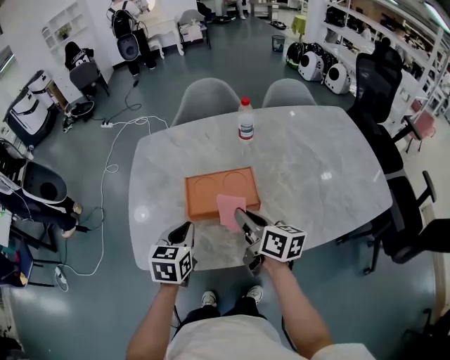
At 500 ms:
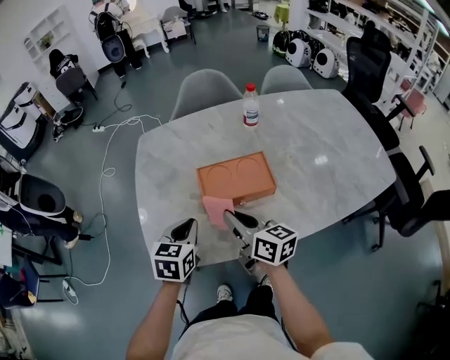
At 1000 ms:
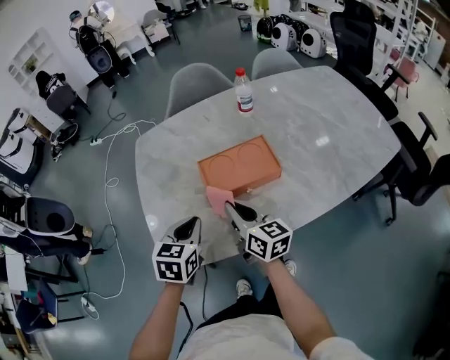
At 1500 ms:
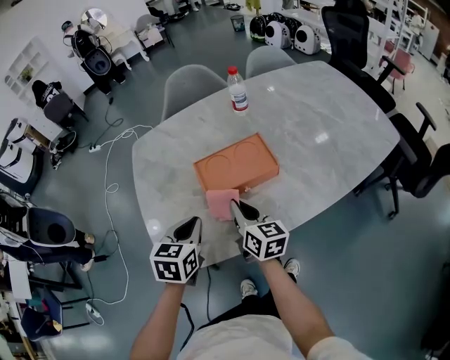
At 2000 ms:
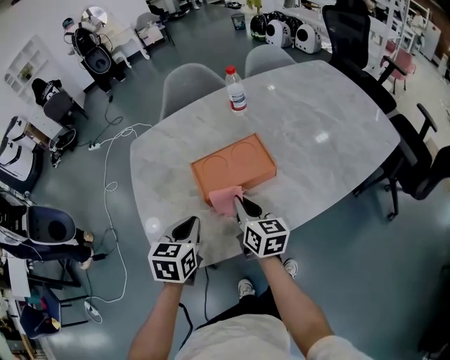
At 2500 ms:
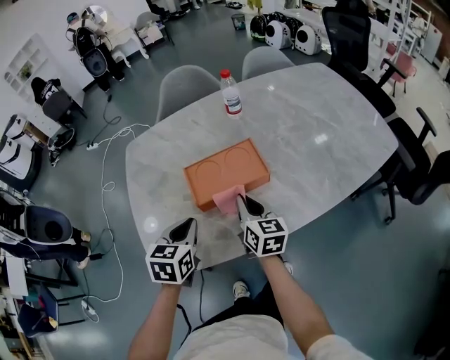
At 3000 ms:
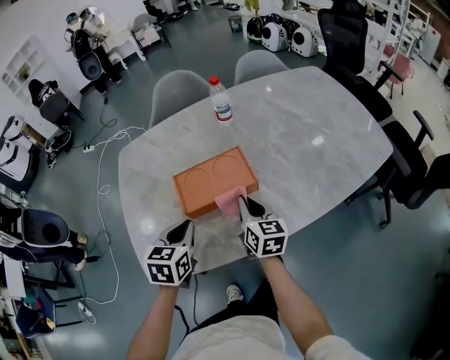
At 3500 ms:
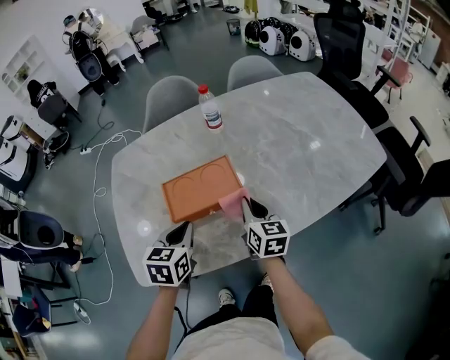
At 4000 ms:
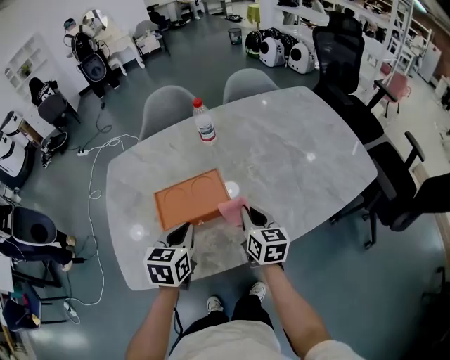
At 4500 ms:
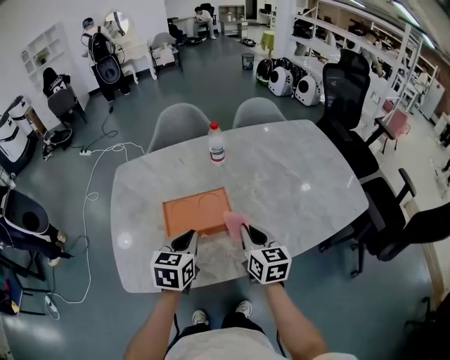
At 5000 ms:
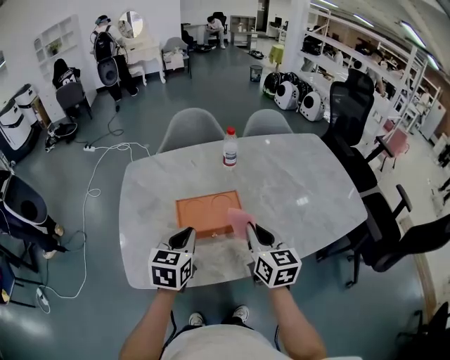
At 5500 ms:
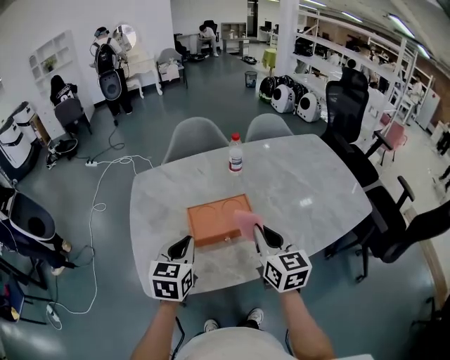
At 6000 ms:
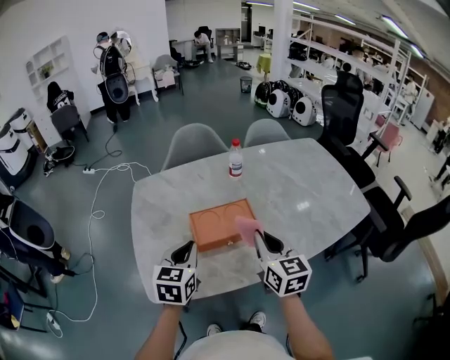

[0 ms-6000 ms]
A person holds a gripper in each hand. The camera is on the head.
0 ms to 2000 ms: The right gripper heads downward and to the left, covering approximately 10 cm, and turns by roughly 30 degrees. The left gripper ends up approximately 5 cm from where it was.
2000 ms to 4000 ms: Both grippers travel together to the right, roughly 15 cm.
4000 ms to 6000 ms: The right gripper heads upward, to the left and backward, covering approximately 20 cm. Meanwhile the left gripper heads to the left and upward, covering about 15 cm.

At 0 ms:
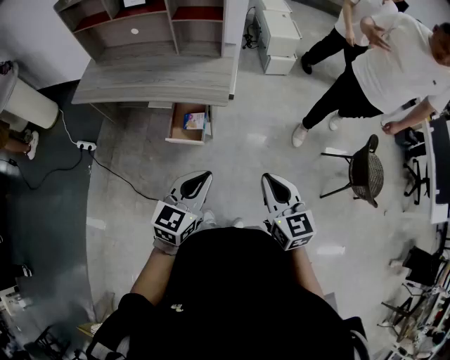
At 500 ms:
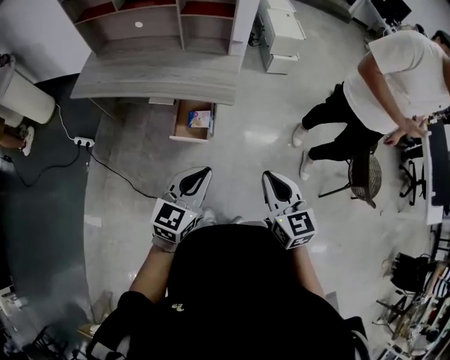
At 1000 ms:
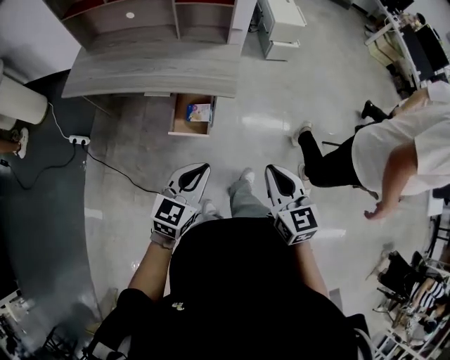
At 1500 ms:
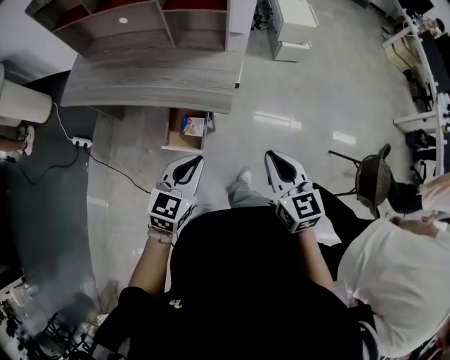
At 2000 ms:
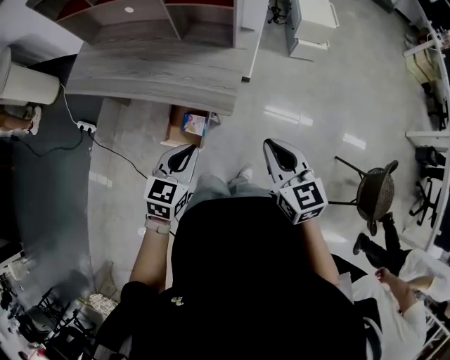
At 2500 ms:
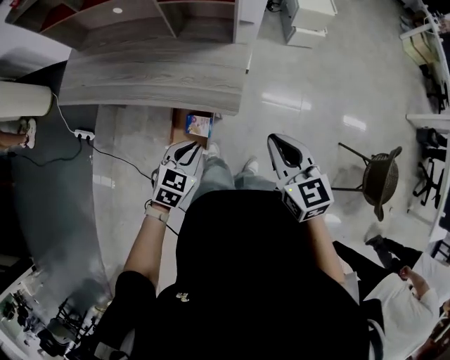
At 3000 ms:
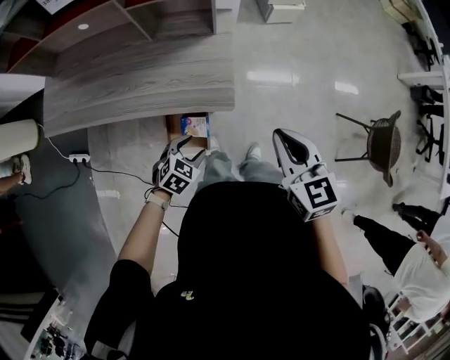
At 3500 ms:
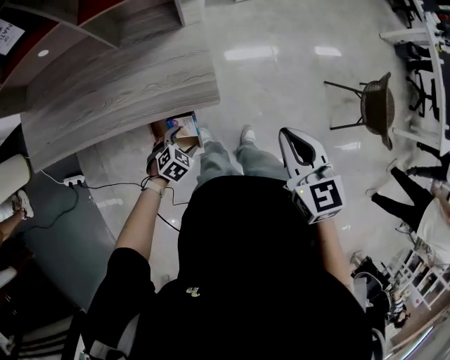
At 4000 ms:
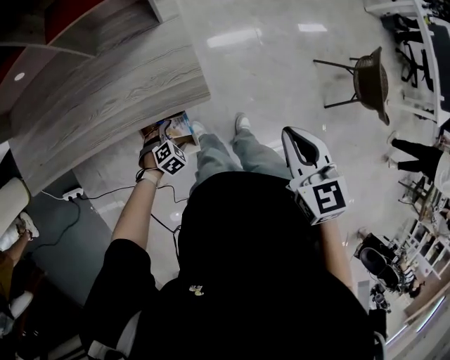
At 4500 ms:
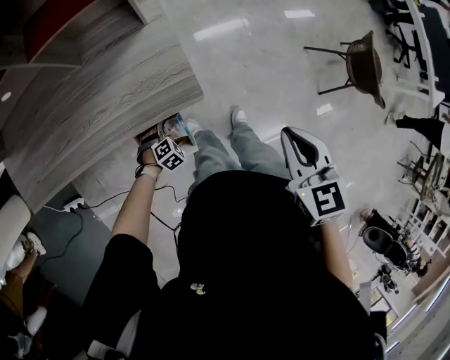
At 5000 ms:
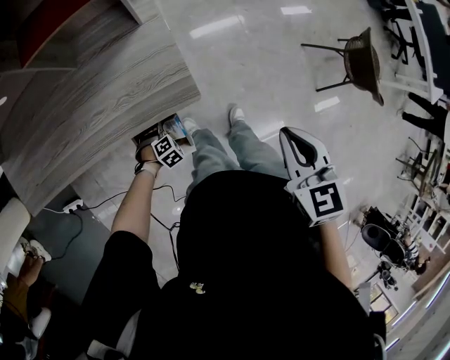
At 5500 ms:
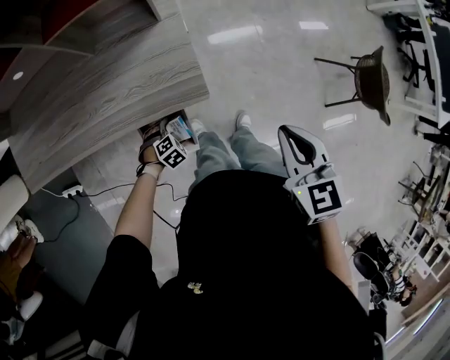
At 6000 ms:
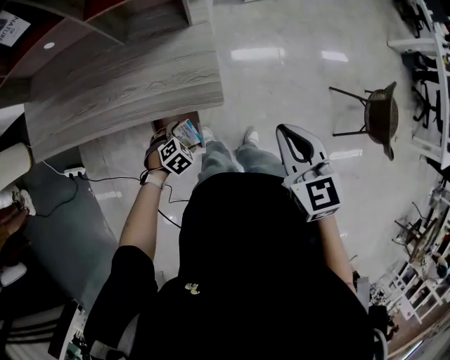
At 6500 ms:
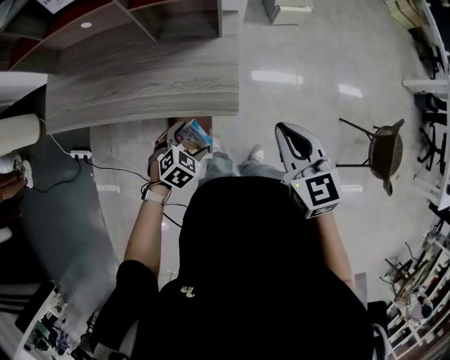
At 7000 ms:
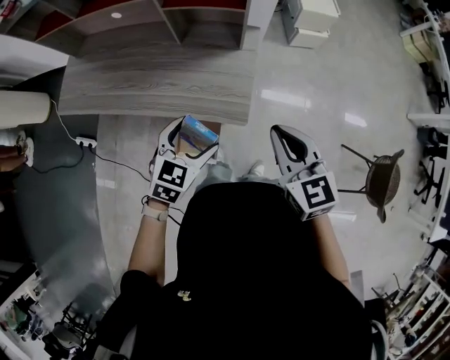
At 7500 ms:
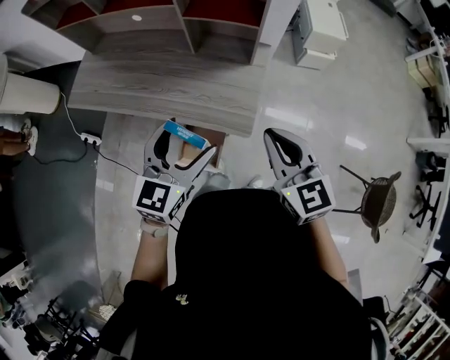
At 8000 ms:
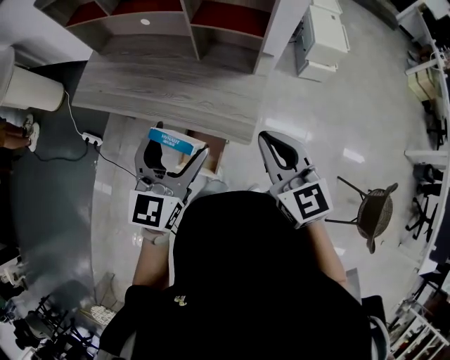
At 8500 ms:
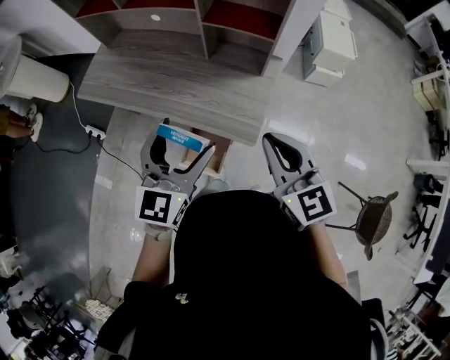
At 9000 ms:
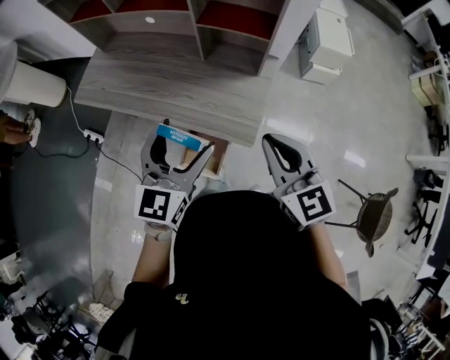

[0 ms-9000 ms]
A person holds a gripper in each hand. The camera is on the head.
0 ms to 2000 ms: The grippers both shift forward by about 25 cm.
2000 ms to 4500 ms: The left gripper travels downward by approximately 40 cm, angles its fingers downward, by roughly 40 degrees, and opens up. The right gripper moves downward, about 5 cm, and swivels some 40 degrees.
4500 ms to 7000 ms: The right gripper moves roughly 15 cm, and turns by about 40 degrees. Meanwhile the left gripper travels upward by some 40 cm, and angles its fingers upward, by some 30 degrees.
7000 ms to 9000 ms: The left gripper moves upward, some 15 cm, and swivels approximately 40 degrees. Meanwhile the right gripper goes some 10 cm upward and to the left.

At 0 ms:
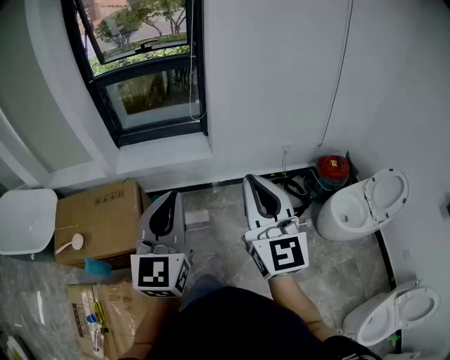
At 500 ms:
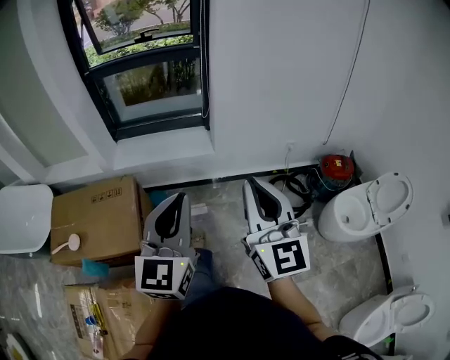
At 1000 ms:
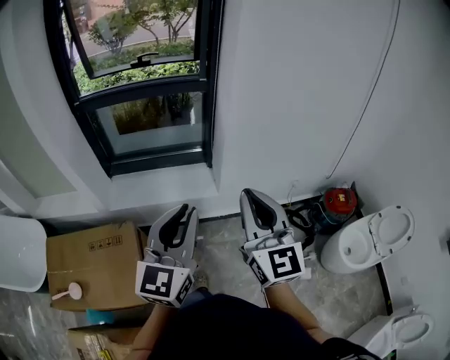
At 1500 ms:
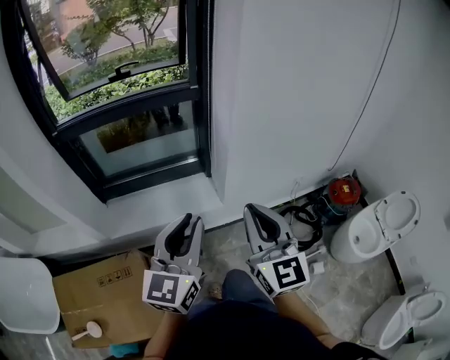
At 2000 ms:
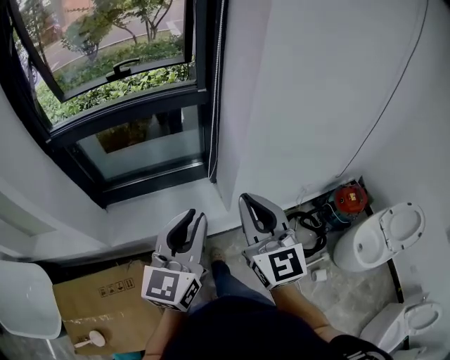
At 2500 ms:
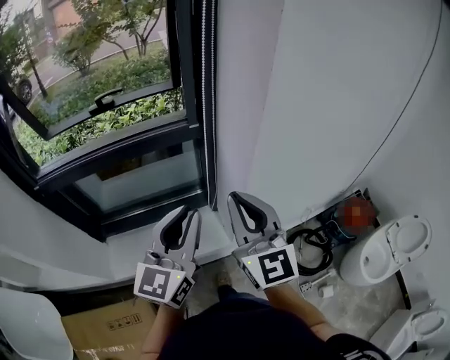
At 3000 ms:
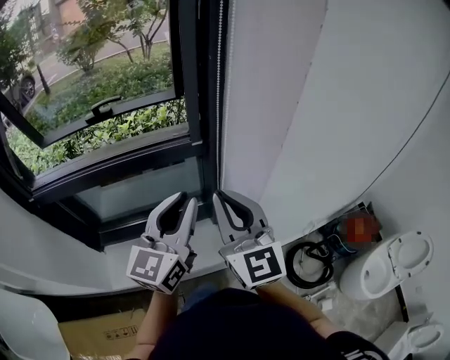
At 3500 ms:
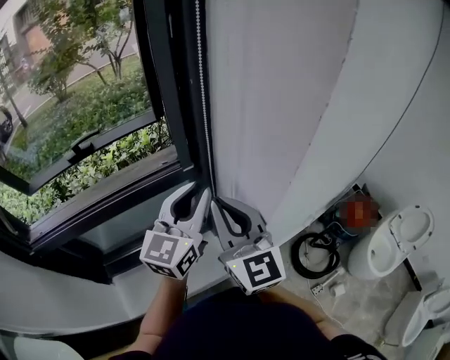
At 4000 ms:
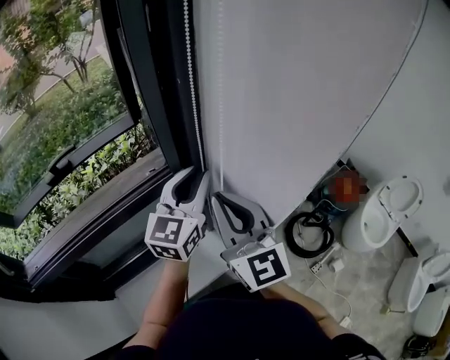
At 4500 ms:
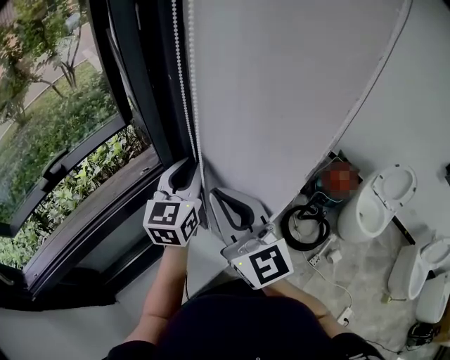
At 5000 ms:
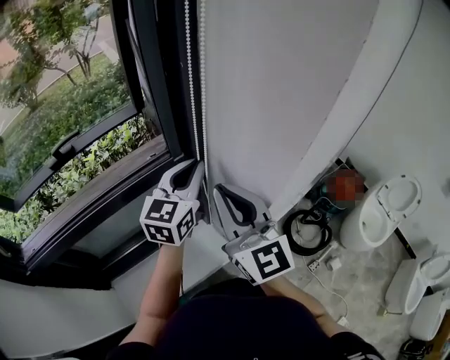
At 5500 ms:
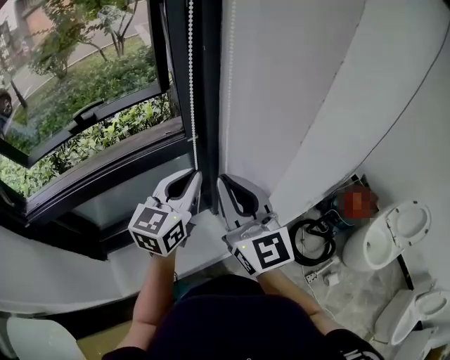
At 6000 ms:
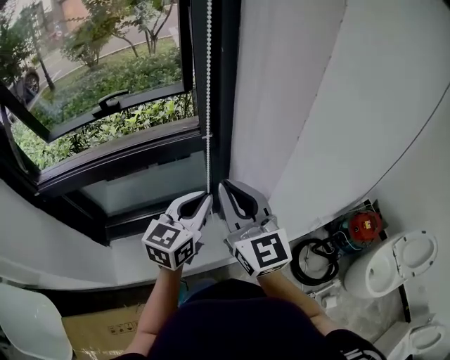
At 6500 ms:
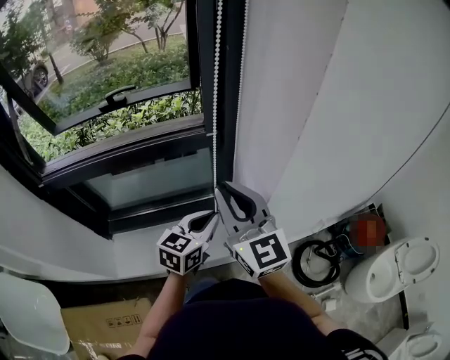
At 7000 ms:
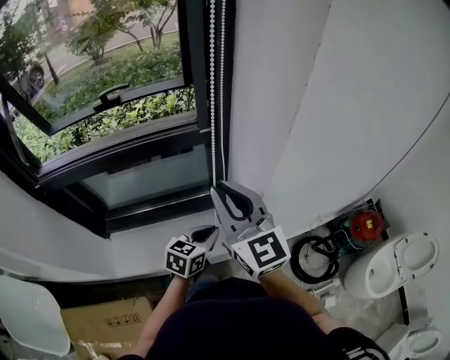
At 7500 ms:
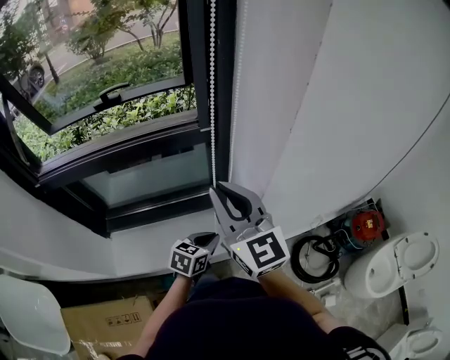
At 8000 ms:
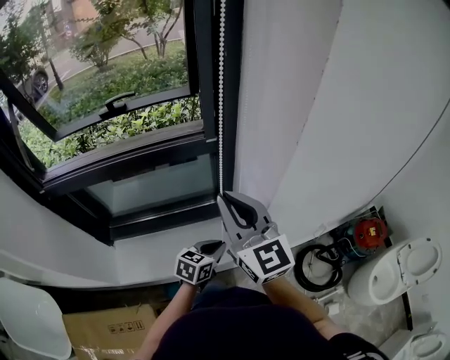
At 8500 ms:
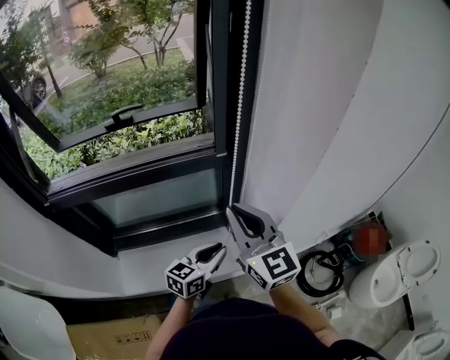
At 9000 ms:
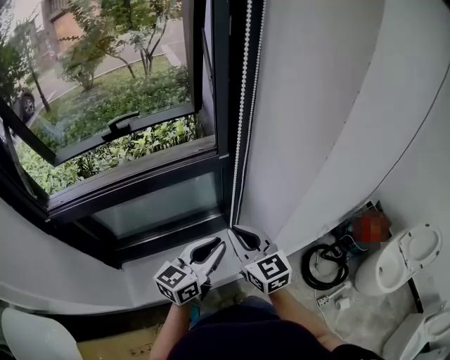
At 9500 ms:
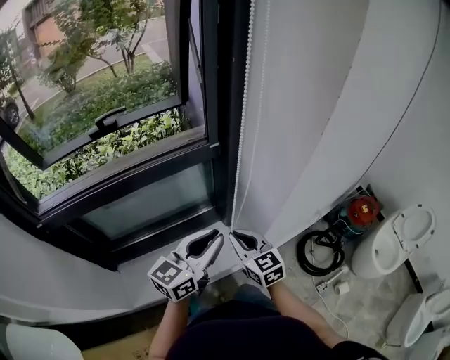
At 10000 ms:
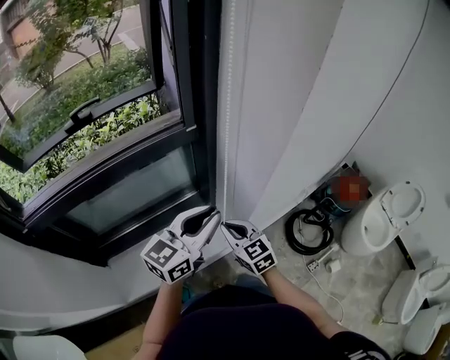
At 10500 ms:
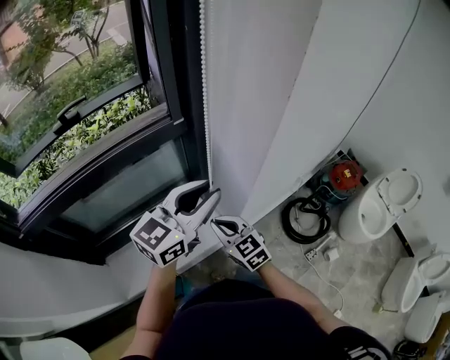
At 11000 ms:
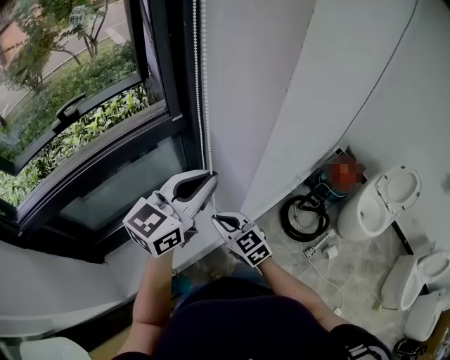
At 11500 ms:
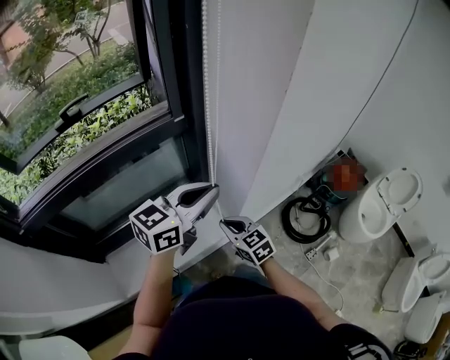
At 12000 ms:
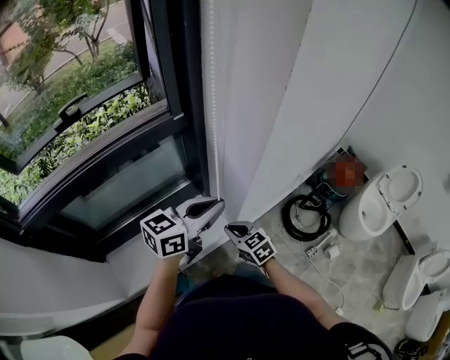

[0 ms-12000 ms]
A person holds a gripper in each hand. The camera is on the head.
0 ms to 2000 ms: Both grippers are carried forward, roughly 50 cm. The left gripper swivels roughly 20 degrees.
2000 ms to 4000 ms: The two grippers go roughly 35 cm forward. The left gripper swivels about 20 degrees.
4000 ms to 6000 ms: The left gripper travels backward and downward by about 15 cm; the right gripper is displaced backward by about 5 cm.
6000 ms to 8000 ms: The left gripper heads downward, covering roughly 20 cm, and changes its angle by roughly 30 degrees.
8000 ms to 10000 ms: The right gripper heads downward, covering approximately 25 cm, and rotates about 30 degrees. The left gripper shifts about 20 cm upward, and angles its fingers upward, by approximately 30 degrees.
10000 ms to 12000 ms: The left gripper goes upward and returns, roughly 5 cm each way. Meanwhile the right gripper shifts about 10 cm downward.
